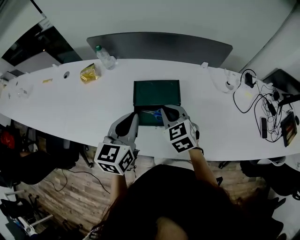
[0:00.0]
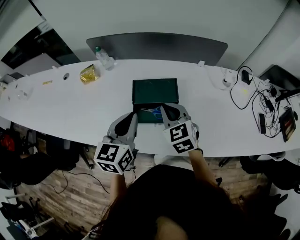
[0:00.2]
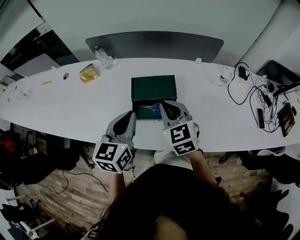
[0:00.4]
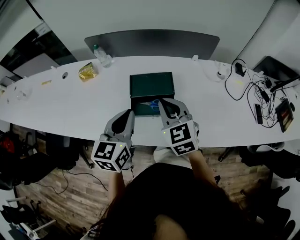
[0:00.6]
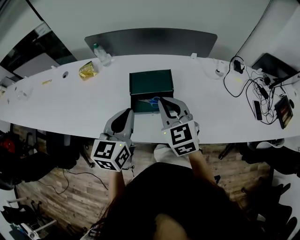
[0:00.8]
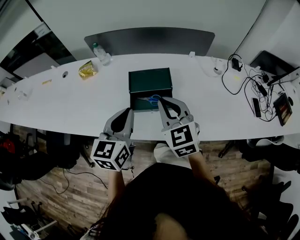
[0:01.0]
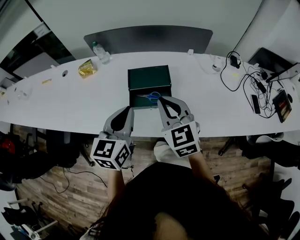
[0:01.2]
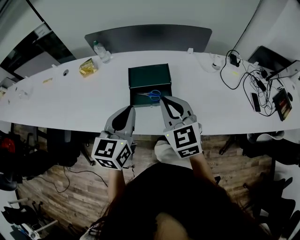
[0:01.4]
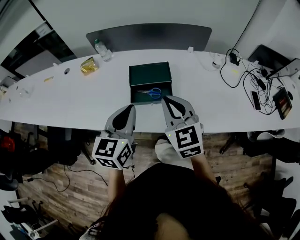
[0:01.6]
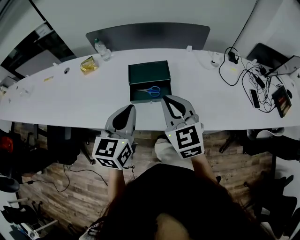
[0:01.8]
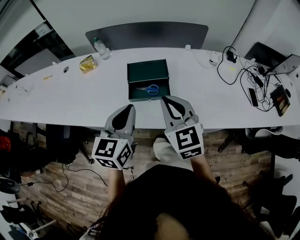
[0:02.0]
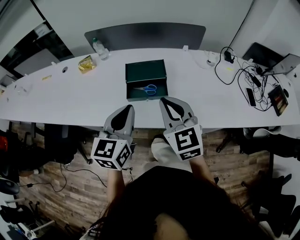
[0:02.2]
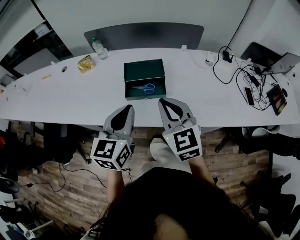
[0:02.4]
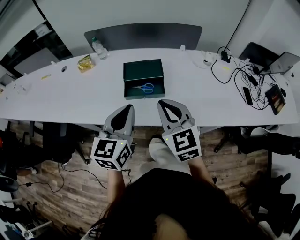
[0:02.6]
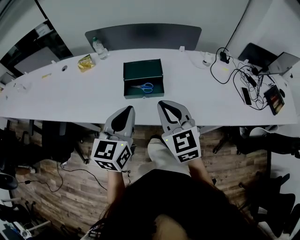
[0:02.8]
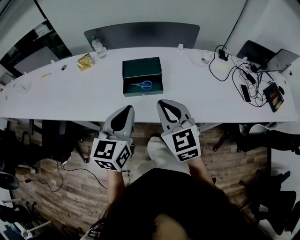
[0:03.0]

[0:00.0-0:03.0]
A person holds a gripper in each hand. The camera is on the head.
0:00.0 to 0:01.6: The right gripper heads backward and upward, covering roughly 20 cm, and rotates roughly 20 degrees. Meanwhile the left gripper shifts about 15 cm backward.
0:01.6 to 0:03.0: The grippers both shift backward by about 10 cm.

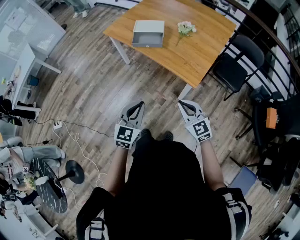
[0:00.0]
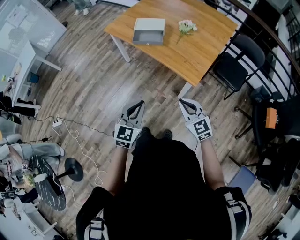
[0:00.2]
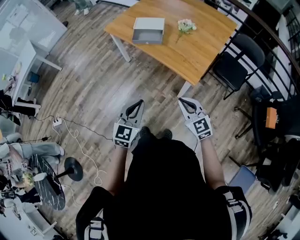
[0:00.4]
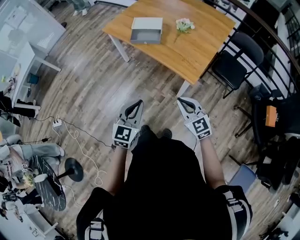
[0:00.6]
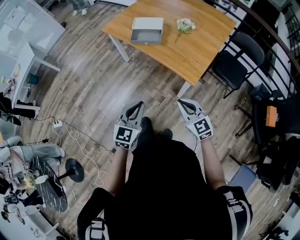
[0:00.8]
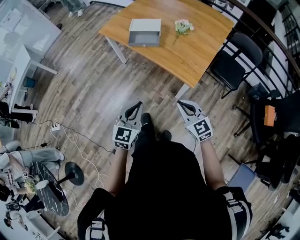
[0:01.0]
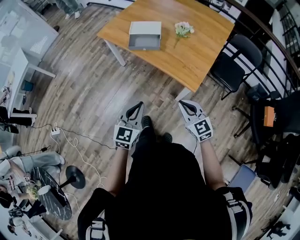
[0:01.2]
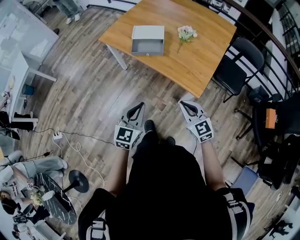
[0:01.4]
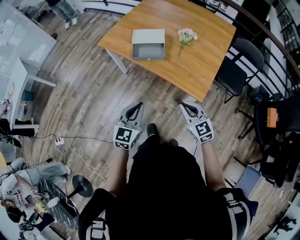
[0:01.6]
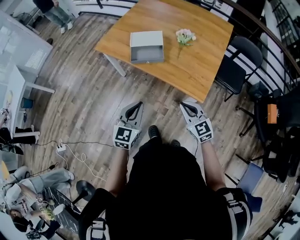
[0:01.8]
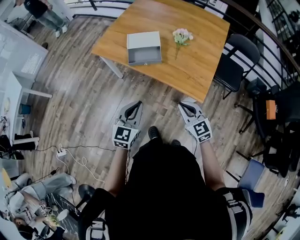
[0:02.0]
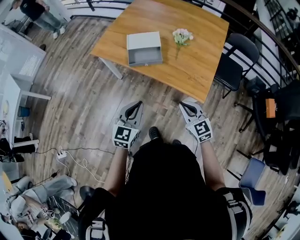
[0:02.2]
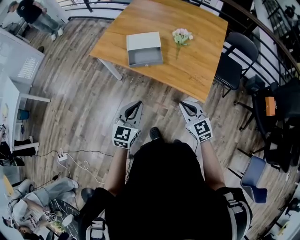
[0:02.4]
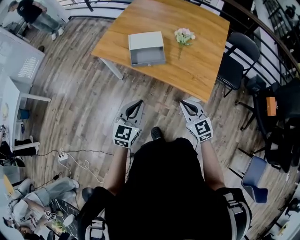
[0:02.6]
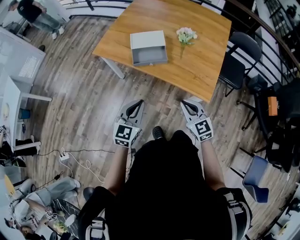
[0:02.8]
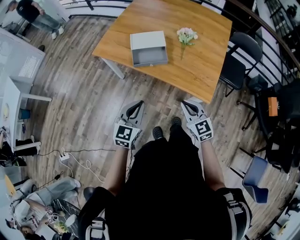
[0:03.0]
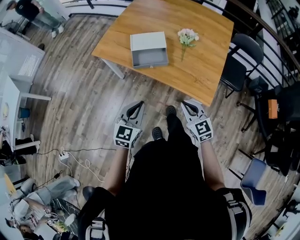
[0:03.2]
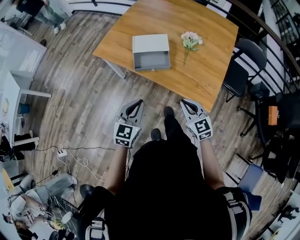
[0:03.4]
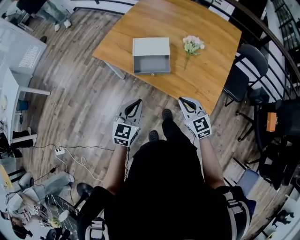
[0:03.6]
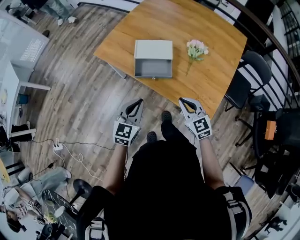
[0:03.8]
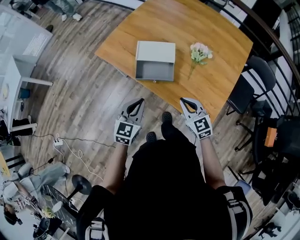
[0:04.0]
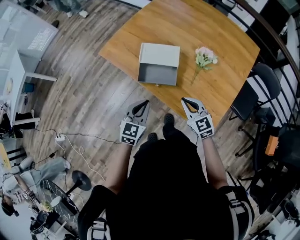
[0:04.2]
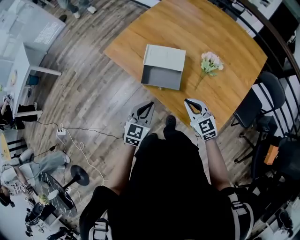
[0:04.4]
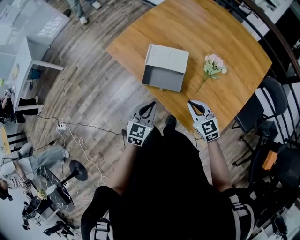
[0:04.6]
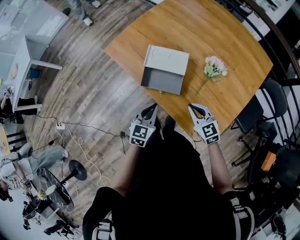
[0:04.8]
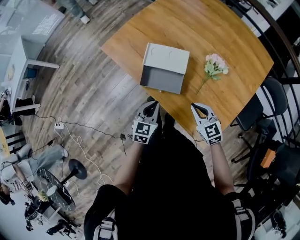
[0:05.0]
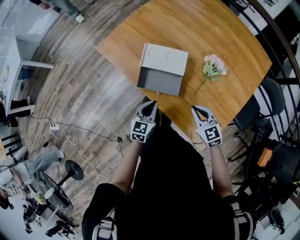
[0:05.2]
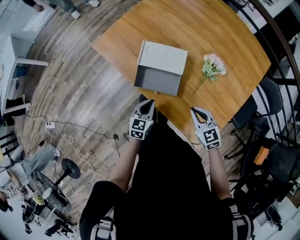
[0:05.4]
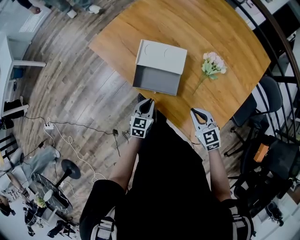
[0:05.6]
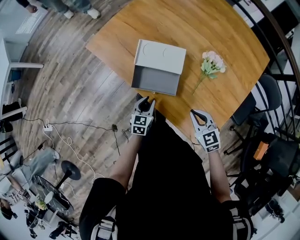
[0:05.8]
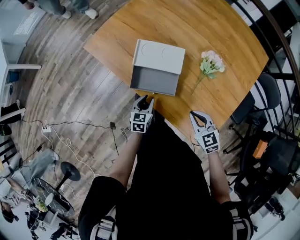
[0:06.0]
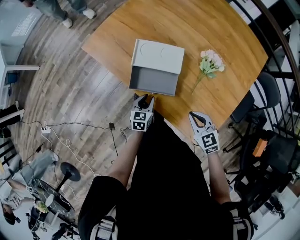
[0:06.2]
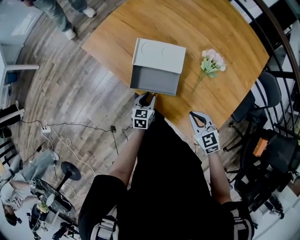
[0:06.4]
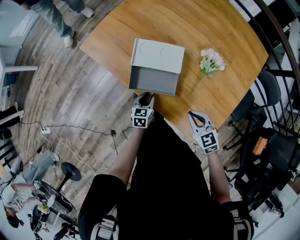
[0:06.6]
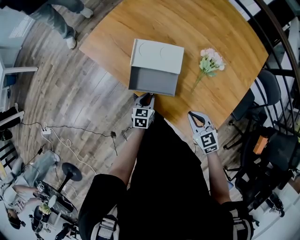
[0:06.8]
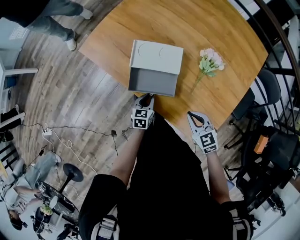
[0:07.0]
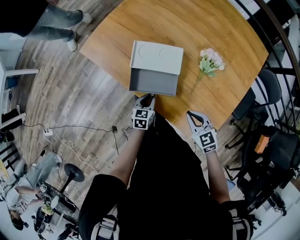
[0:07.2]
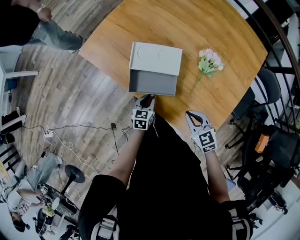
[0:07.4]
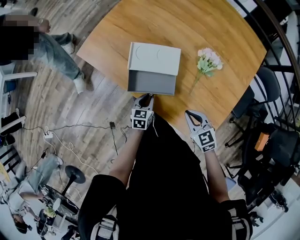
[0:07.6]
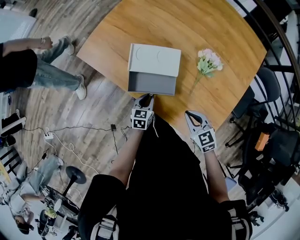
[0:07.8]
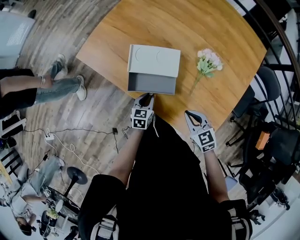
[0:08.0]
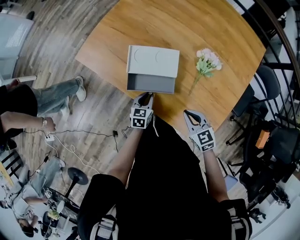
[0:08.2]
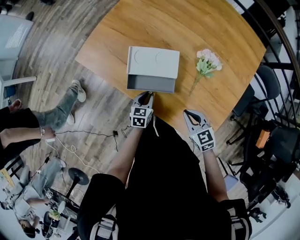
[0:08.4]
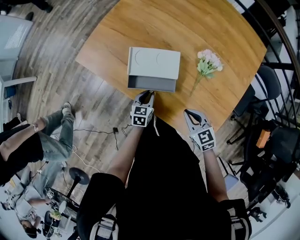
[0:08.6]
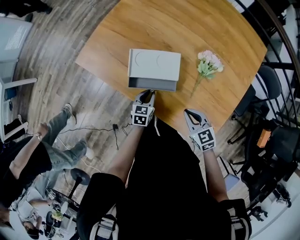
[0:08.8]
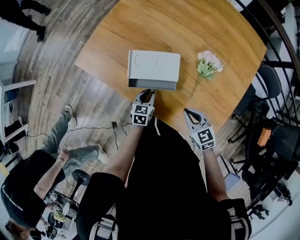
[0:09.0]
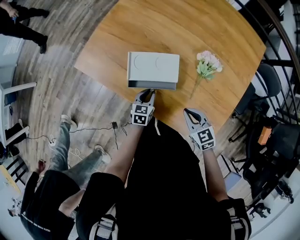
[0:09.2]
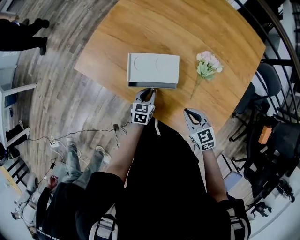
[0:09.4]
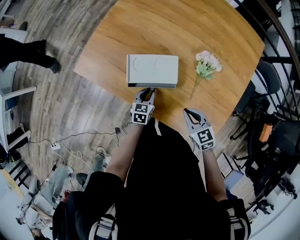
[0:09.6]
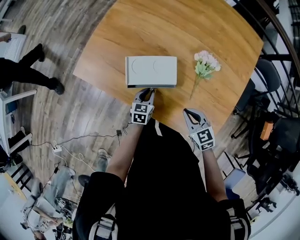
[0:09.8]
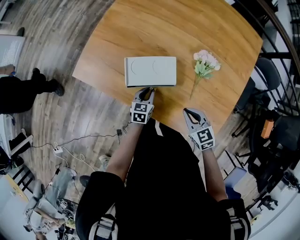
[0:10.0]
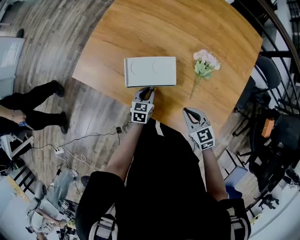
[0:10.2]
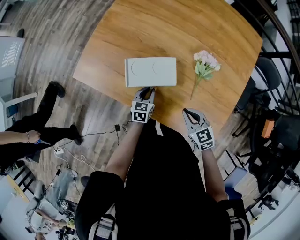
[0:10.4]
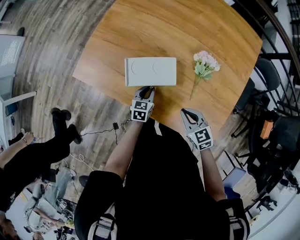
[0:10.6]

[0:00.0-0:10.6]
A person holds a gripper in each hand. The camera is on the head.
0:00.0 to 0:01.6: The two grippers go about 15 cm forward.
0:01.6 to 0:03.0: The grippers both shift forward and to the left by about 10 cm.
0:03.0 to 0:04.6: The left gripper moves forward and to the right, roughly 25 cm. Meanwhile the right gripper goes some 30 cm forward, and swivels about 20 degrees.
0:04.6 to 0:06.0: The right gripper heads downward, covering approximately 5 cm. Meanwhile the left gripper goes approximately 20 cm downward and forward, and opens up.
0:06.0 to 0:07.6: The grippers move only a little.
0:07.6 to 0:09.0: The left gripper goes about 5 cm forward.
0:09.0 to 0:10.6: The left gripper travels forward by roughly 5 cm.

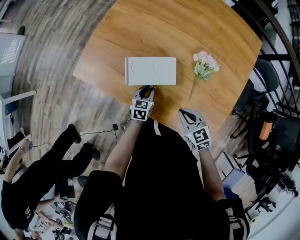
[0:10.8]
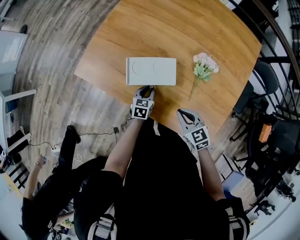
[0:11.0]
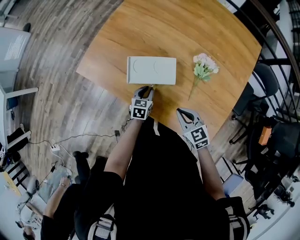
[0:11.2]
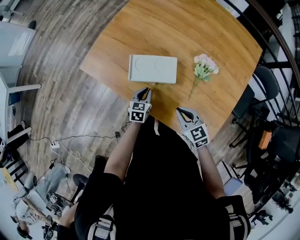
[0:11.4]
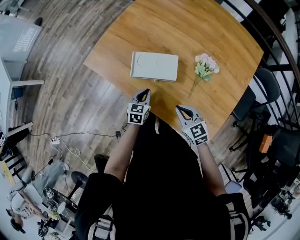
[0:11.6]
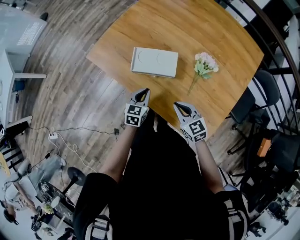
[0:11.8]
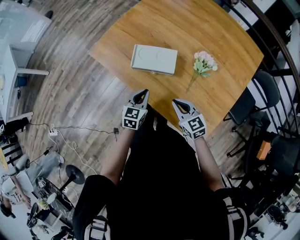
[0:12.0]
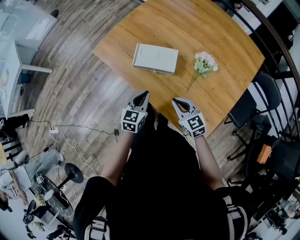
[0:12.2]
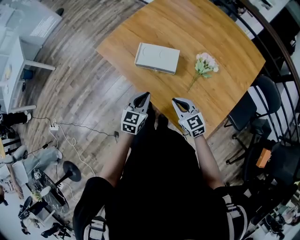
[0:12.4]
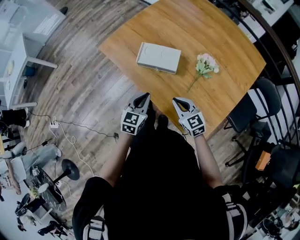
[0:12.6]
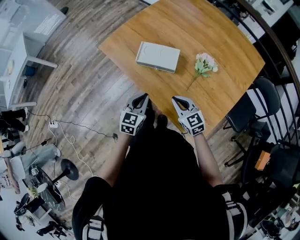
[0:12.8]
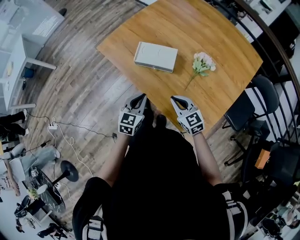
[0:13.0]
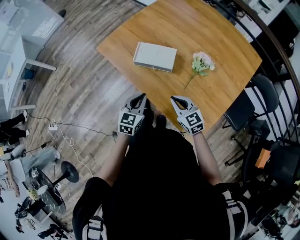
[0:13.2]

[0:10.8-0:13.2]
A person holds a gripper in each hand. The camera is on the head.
0:10.8 to 0:12.0: The right gripper is displaced backward and upward by some 10 cm. Meanwhile the left gripper goes about 20 cm upward and backward.
0:12.0 to 0:13.2: The left gripper is displaced backward and upward by roughly 10 cm.

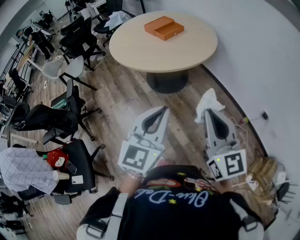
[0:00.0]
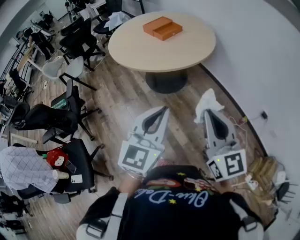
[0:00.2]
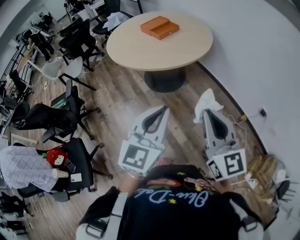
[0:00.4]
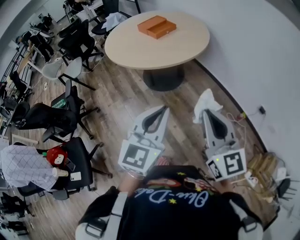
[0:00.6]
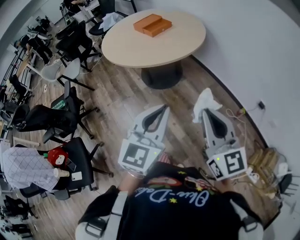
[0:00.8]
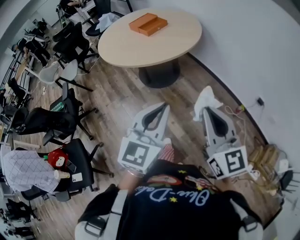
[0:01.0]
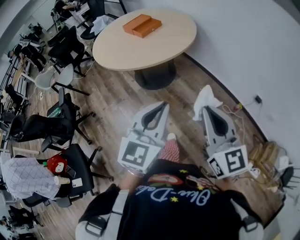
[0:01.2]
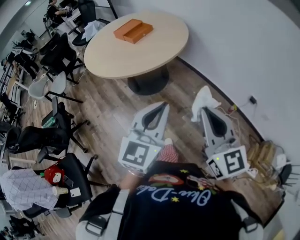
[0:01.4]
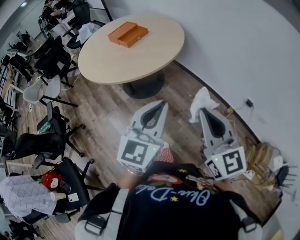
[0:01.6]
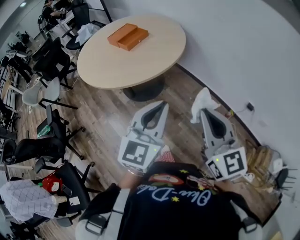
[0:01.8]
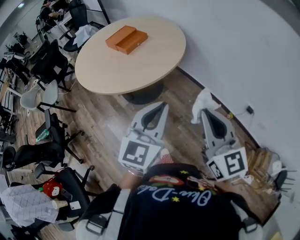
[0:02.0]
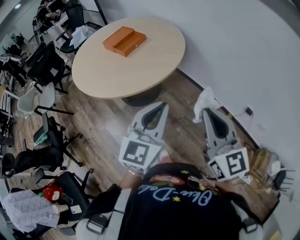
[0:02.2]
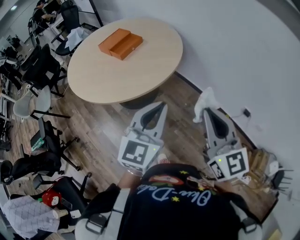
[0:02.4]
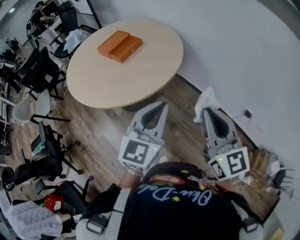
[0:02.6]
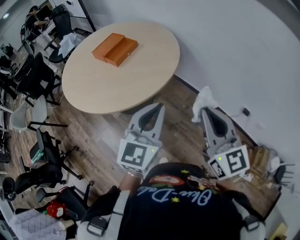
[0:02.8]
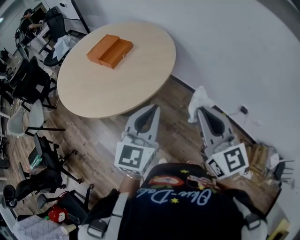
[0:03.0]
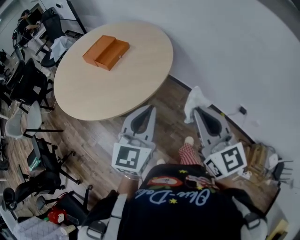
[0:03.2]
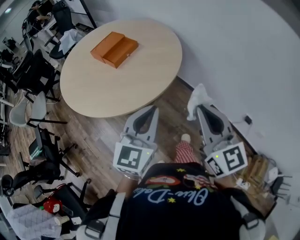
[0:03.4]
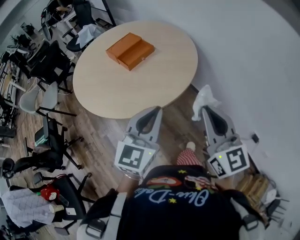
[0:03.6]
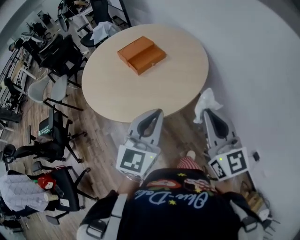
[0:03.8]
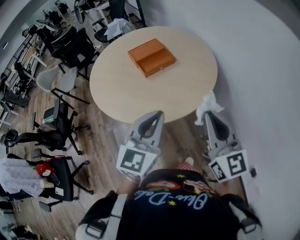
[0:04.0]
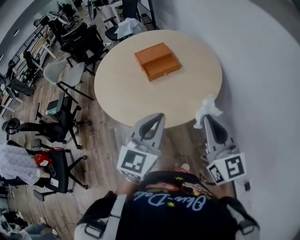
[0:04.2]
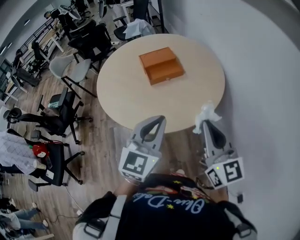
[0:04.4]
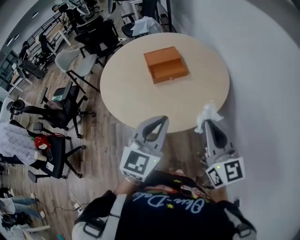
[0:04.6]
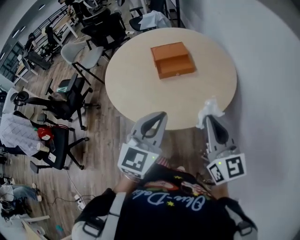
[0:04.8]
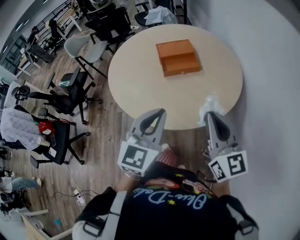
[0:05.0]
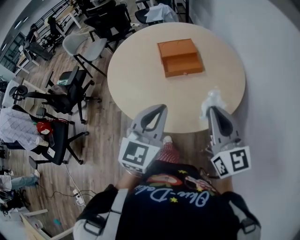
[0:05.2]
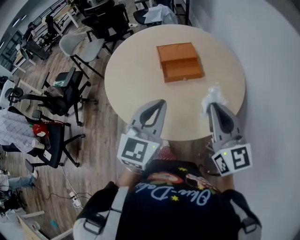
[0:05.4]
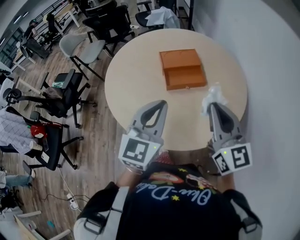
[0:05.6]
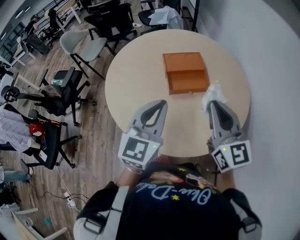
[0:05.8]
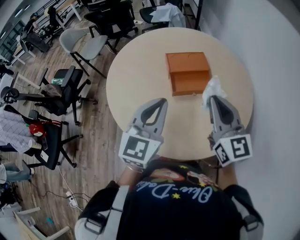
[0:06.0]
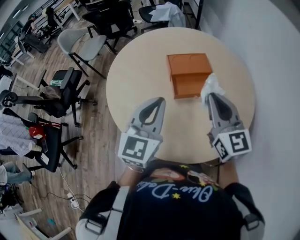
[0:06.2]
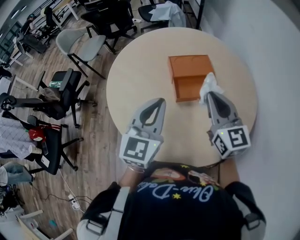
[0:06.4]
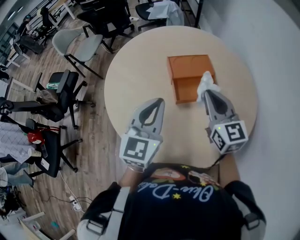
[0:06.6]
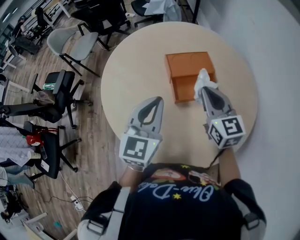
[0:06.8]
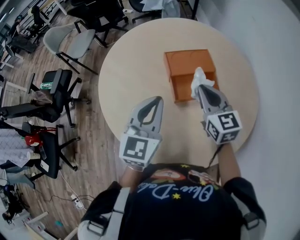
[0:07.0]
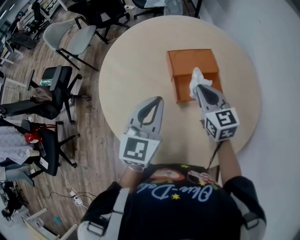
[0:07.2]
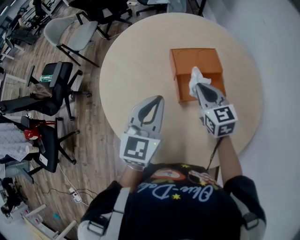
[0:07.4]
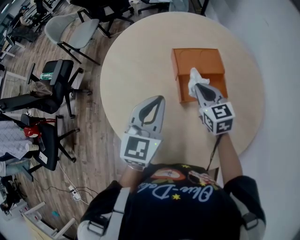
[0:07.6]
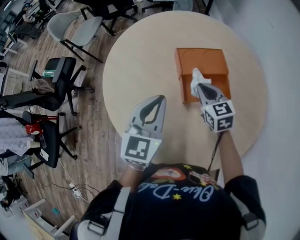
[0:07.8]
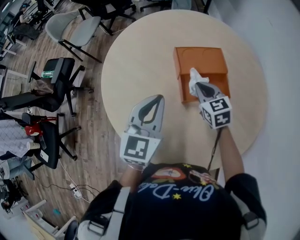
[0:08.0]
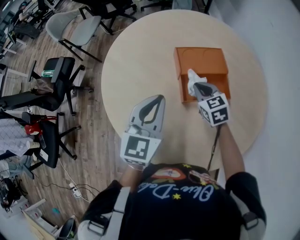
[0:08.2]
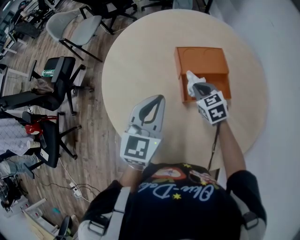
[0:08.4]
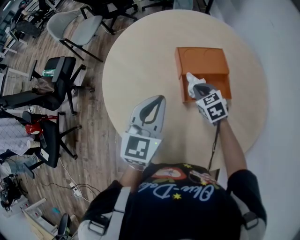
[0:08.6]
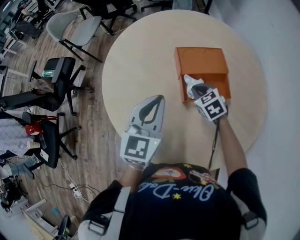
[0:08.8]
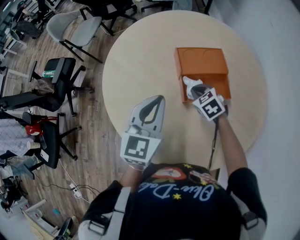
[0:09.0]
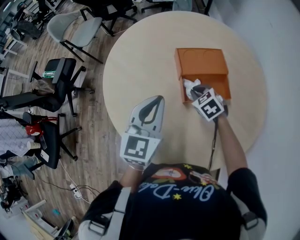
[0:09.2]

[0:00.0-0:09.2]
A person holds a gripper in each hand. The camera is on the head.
0:00.0 to 0:01.6: The right gripper shifts roughly 10 cm to the right; the left gripper moves to the right and forward, some 15 cm.
0:01.6 to 0:03.0: Both grippers travel together forward, roughly 20 cm.
0:03.0 to 0:04.6: The right gripper moves approximately 25 cm, and swivels roughly 40 degrees. Meanwhile the left gripper ends up about 15 cm from where it was, and turns by some 40 degrees.
0:04.6 to 0:06.2: The left gripper is displaced forward and to the left by some 25 cm. The right gripper heads forward, covering approximately 30 cm.
0:06.2 to 0:07.6: The left gripper is displaced forward and downward by roughly 10 cm. The right gripper heads downward and forward, covering about 20 cm, and turns by roughly 30 degrees.
0:07.6 to 0:09.2: The right gripper is displaced downward by some 10 cm, and rotates approximately 30 degrees.
